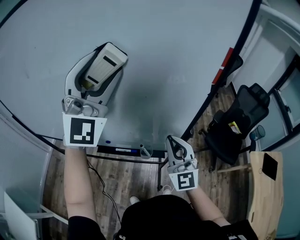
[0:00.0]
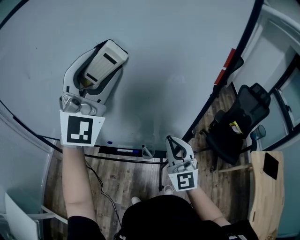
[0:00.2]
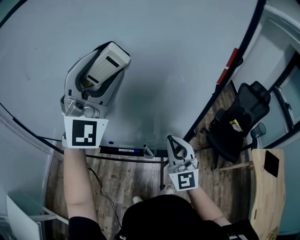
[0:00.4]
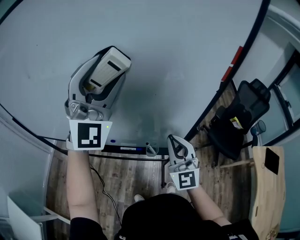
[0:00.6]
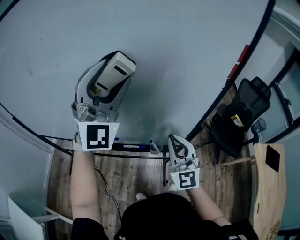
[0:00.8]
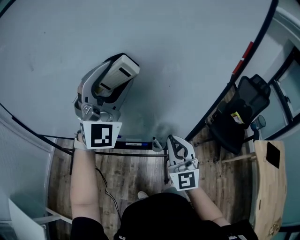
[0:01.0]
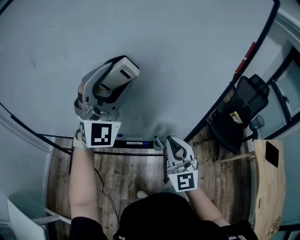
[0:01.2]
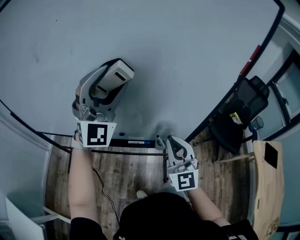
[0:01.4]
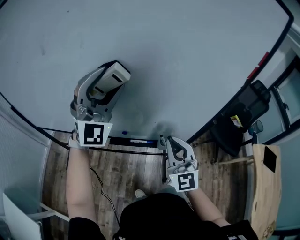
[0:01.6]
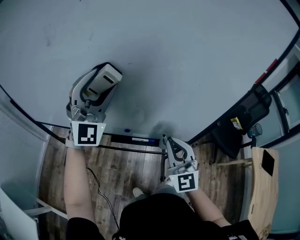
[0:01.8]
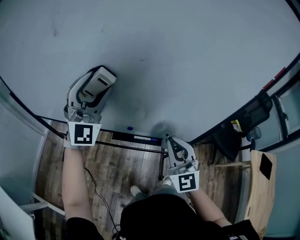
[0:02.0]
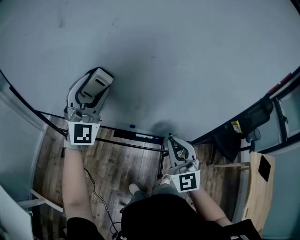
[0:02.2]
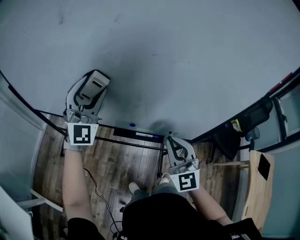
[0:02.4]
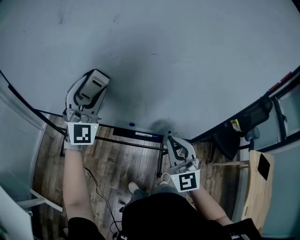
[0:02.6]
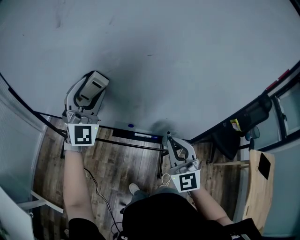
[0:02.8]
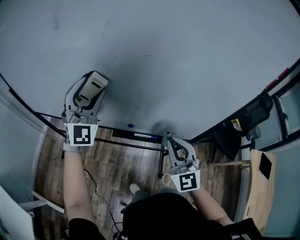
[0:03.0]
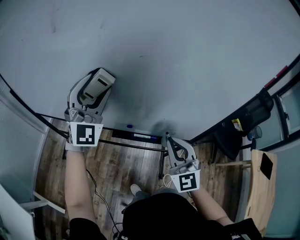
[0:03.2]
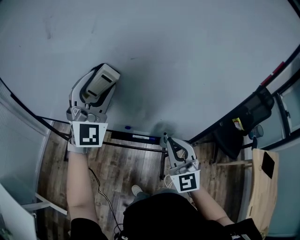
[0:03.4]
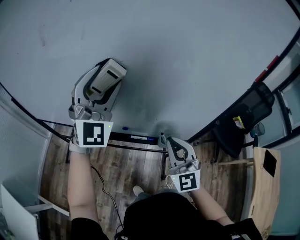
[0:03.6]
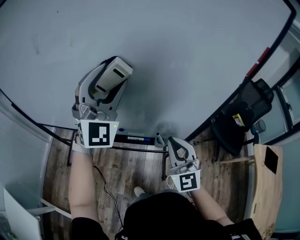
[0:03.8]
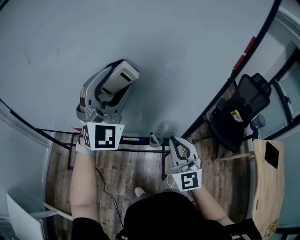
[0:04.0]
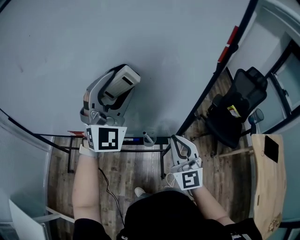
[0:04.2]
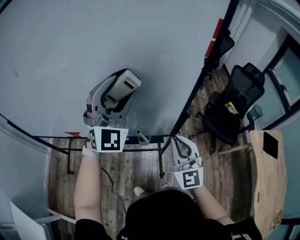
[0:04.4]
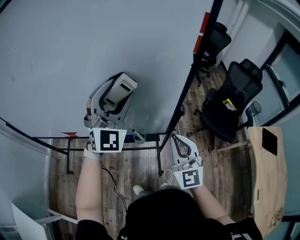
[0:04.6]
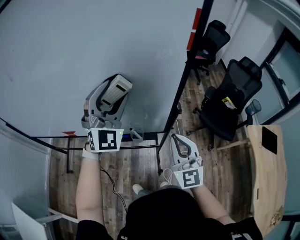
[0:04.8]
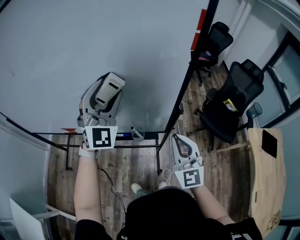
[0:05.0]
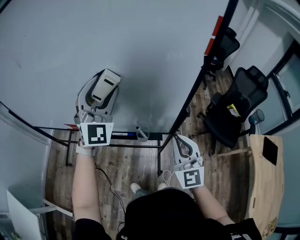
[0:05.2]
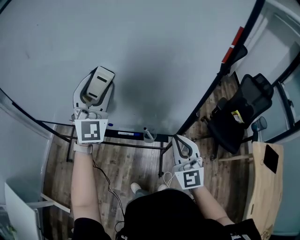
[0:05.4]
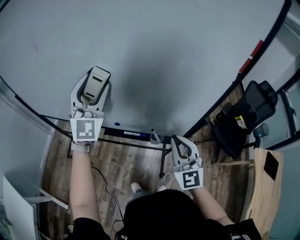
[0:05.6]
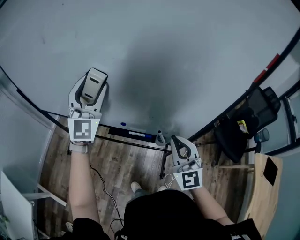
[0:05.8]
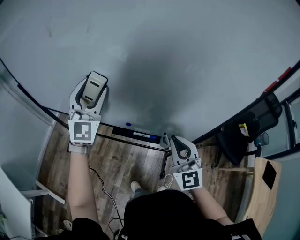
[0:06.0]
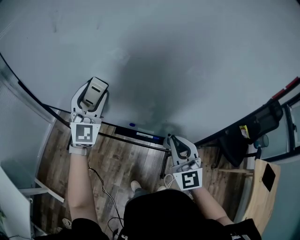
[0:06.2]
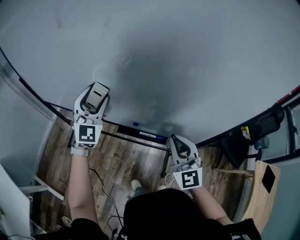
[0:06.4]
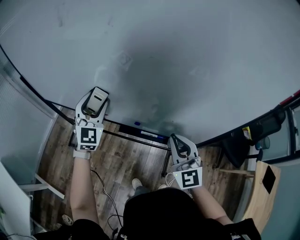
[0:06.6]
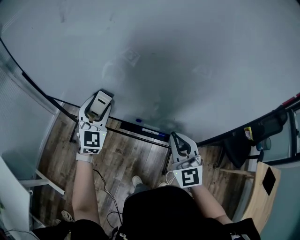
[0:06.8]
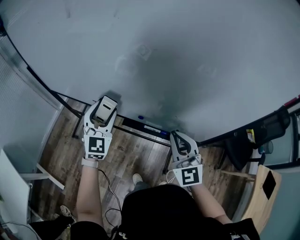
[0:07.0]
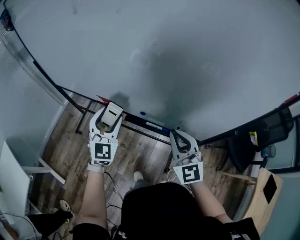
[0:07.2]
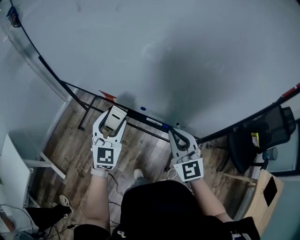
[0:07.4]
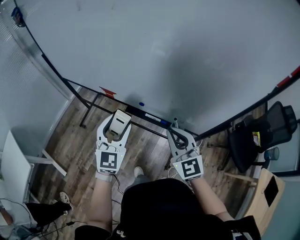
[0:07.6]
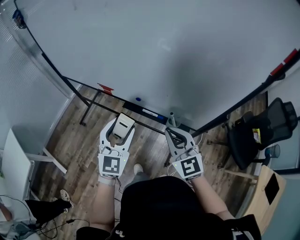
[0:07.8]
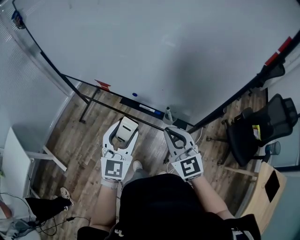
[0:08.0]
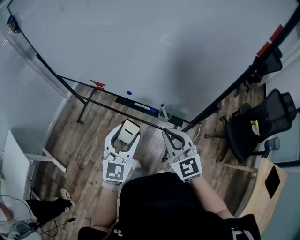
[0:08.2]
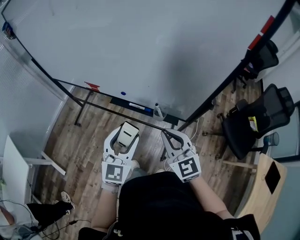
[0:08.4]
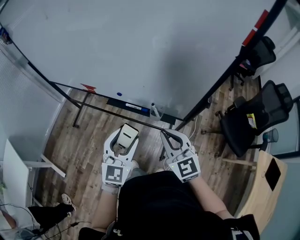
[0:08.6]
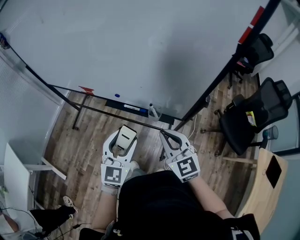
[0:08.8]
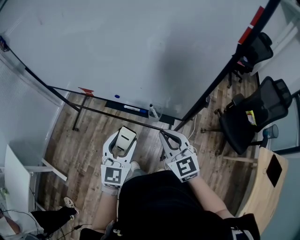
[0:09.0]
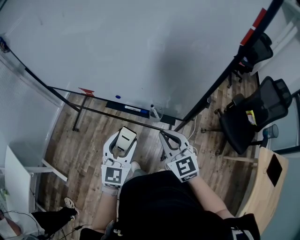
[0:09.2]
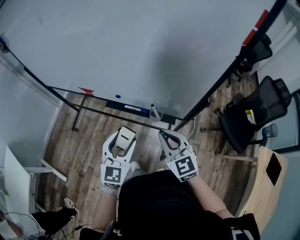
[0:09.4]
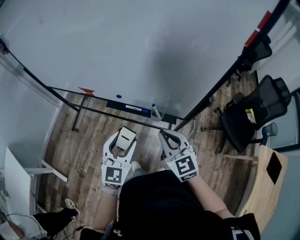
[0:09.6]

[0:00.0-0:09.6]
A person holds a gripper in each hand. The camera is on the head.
0.0 to 1.6 s: The right gripper shifts roughly 10 cm to the left, while the left gripper is displaced downward and to the left by roughly 20 cm.
1.6 to 3.2 s: The left gripper is displaced to the left and downward by some 10 cm.
3.2 to 4.8 s: The two grippers go roughly 25 cm to the right.
4.8 to 6.4 s: The right gripper heads to the left and forward, covering some 25 cm. The left gripper travels to the left by approximately 35 cm, and changes its angle by about 20 degrees.
6.4 to 8.0 s: The left gripper shifts about 30 cm backward and to the right, and turns by some 20 degrees. Meanwhile the right gripper travels backward by about 10 cm, and swivels some 20 degrees.
8.0 to 9.6 s: The right gripper shifts by roughly 5 cm, while the left gripper goes some 5 cm downward.

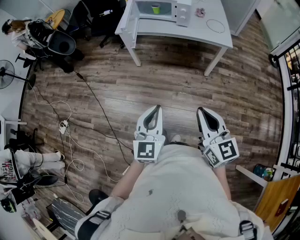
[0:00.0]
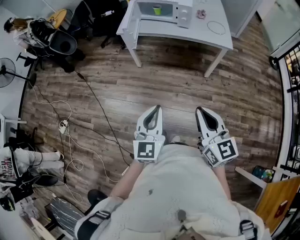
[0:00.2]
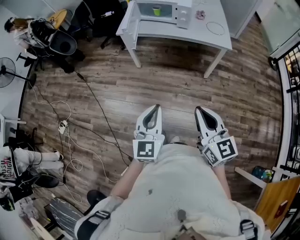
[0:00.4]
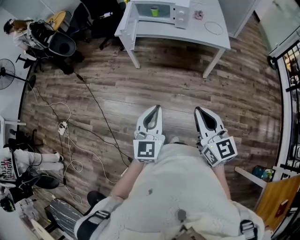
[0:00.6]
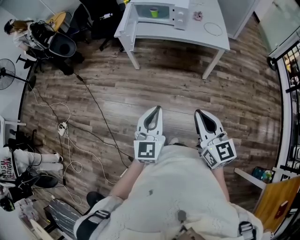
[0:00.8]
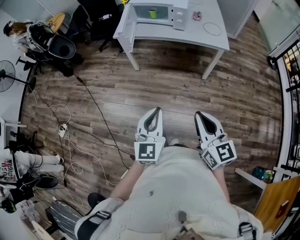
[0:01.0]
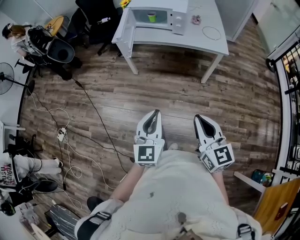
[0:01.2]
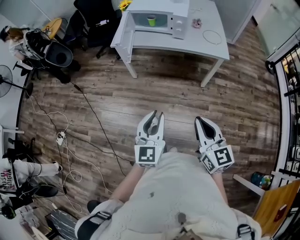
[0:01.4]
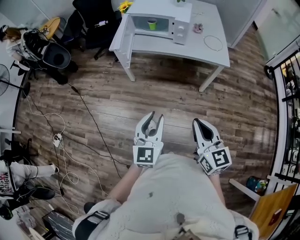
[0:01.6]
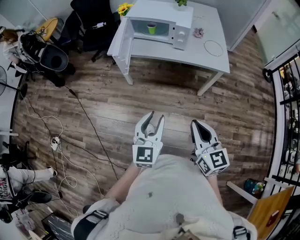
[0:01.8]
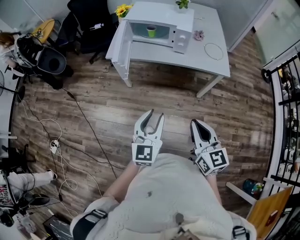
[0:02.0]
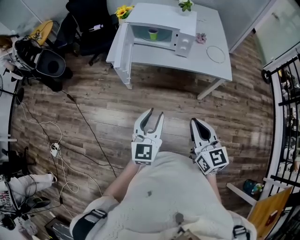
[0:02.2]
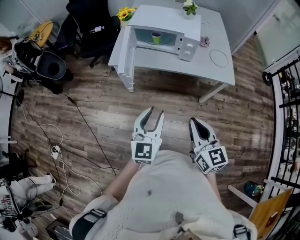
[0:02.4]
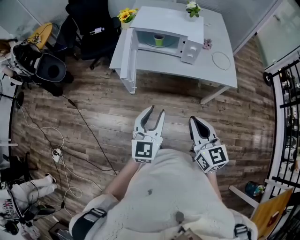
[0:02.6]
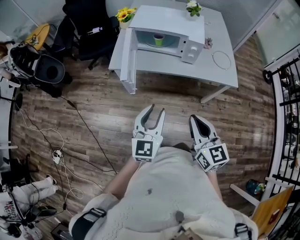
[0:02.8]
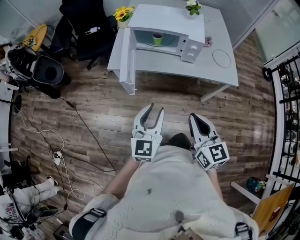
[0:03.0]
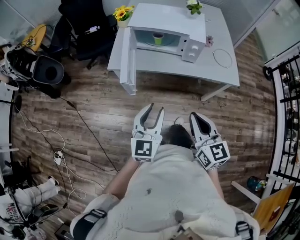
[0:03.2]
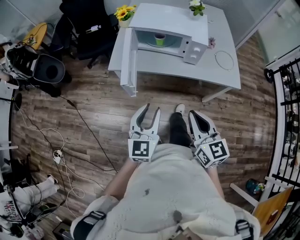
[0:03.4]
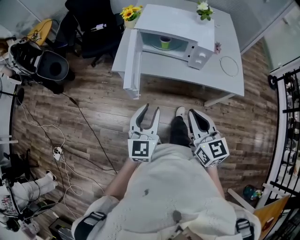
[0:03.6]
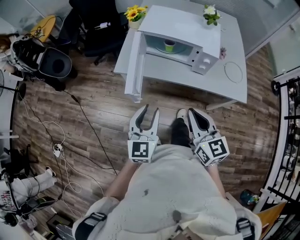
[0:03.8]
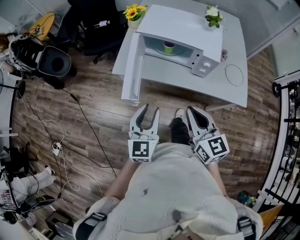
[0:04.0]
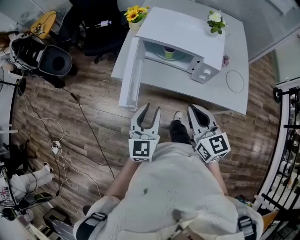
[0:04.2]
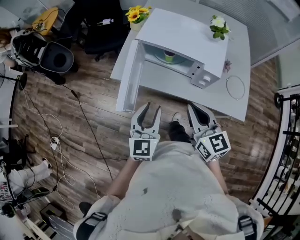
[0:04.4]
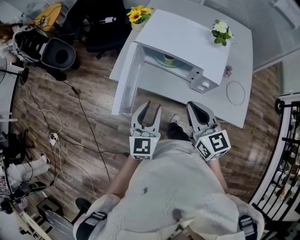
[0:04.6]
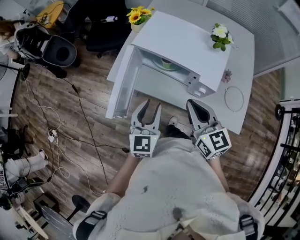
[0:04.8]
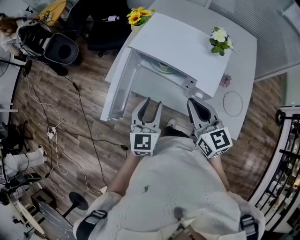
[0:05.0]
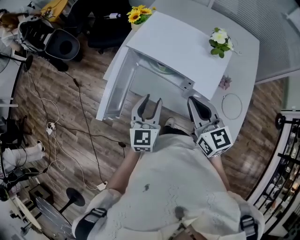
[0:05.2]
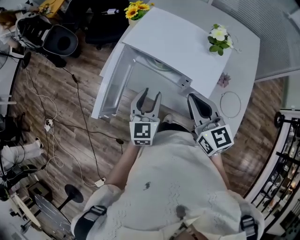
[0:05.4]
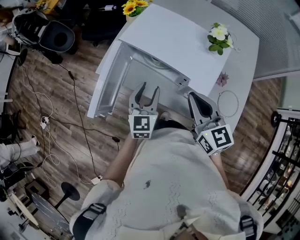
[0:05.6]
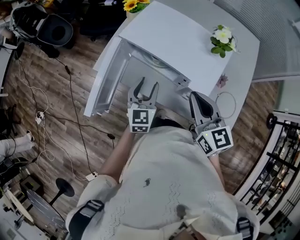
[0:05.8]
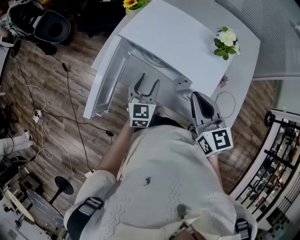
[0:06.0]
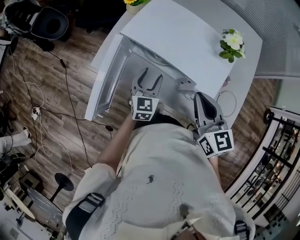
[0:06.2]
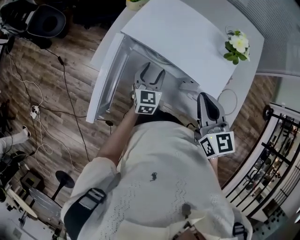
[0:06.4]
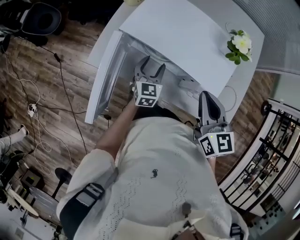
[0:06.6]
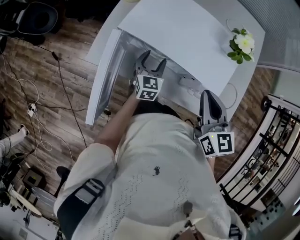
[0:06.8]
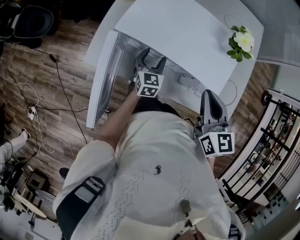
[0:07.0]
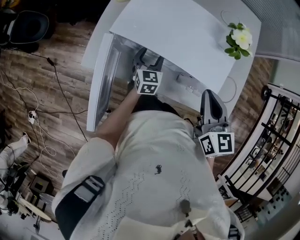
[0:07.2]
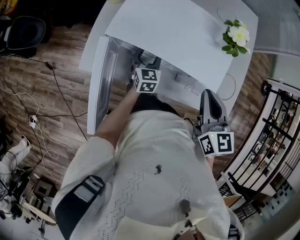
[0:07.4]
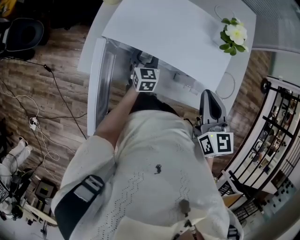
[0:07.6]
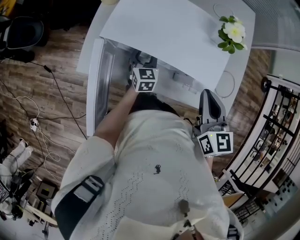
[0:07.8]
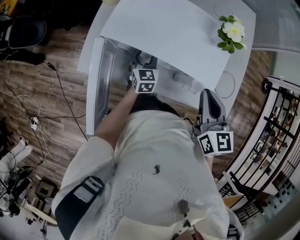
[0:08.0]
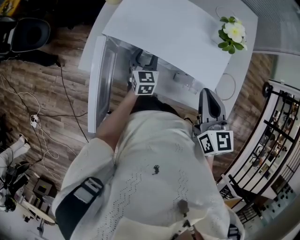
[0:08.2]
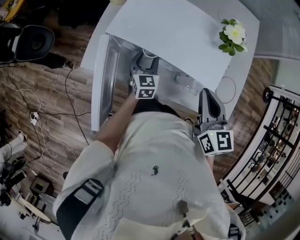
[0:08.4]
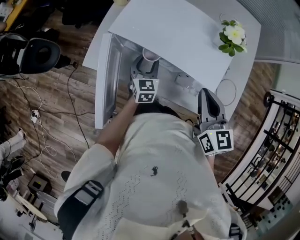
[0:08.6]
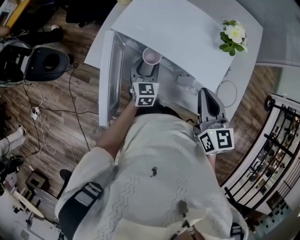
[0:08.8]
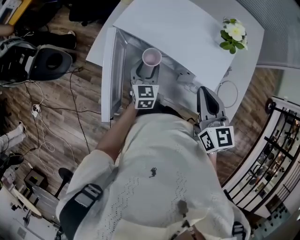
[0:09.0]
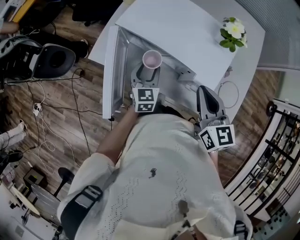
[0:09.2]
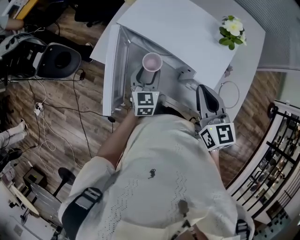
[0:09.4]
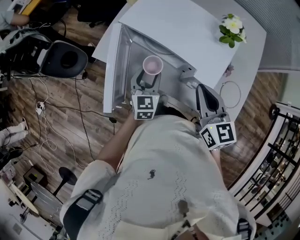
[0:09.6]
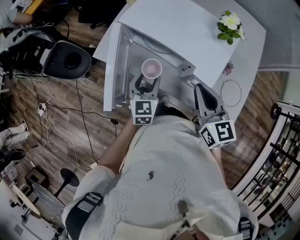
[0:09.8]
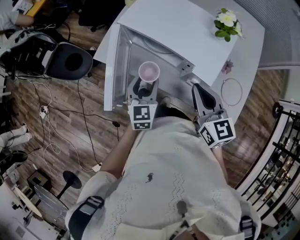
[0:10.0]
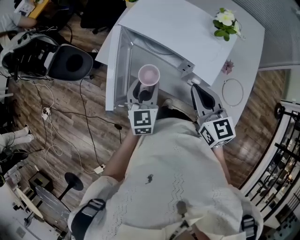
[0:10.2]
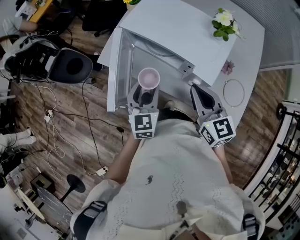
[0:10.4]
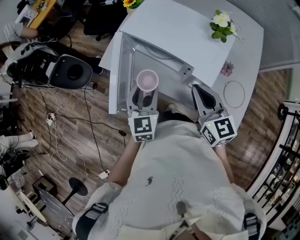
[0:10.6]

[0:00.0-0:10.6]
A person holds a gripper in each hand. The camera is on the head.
0.0 to 1.6 s: Both grippers move forward, roughly 15 cm.
1.6 to 3.0 s: The right gripper shifts some 30 cm forward and to the left. The left gripper goes roughly 30 cm forward.
3.0 to 4.6 s: The two grippers go approximately 30 cm forward.
4.6 to 6.0 s: The left gripper shifts about 25 cm forward, downward and to the right. Meanwhile the right gripper goes roughly 15 cm to the right and forward.
6.0 to 7.6 s: The left gripper goes about 20 cm forward and downward. The right gripper ends up roughly 5 cm from where it was, and swivels some 20 degrees.
7.6 to 9.0 s: The left gripper moves backward and upward, some 10 cm.
9.0 to 10.6 s: The right gripper travels backward by roughly 5 cm. The left gripper heads backward and upward, covering about 20 cm.

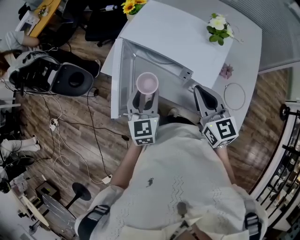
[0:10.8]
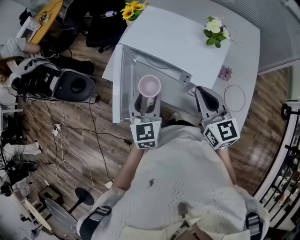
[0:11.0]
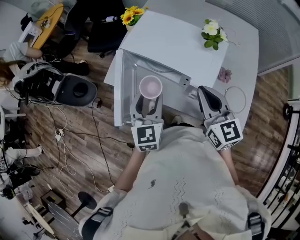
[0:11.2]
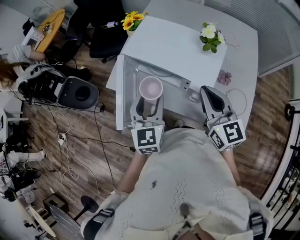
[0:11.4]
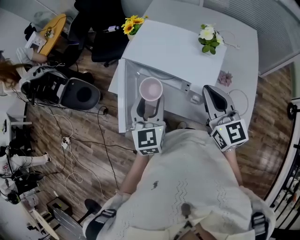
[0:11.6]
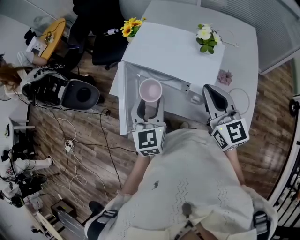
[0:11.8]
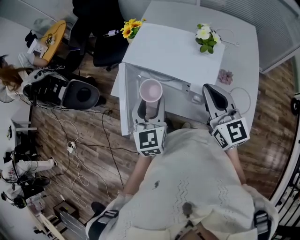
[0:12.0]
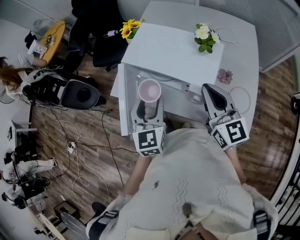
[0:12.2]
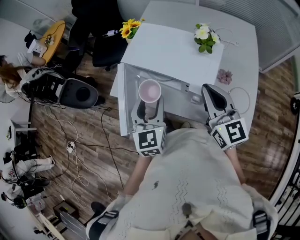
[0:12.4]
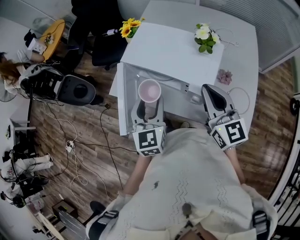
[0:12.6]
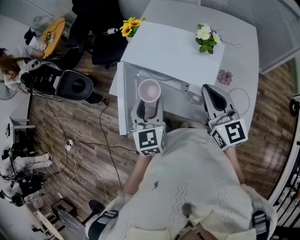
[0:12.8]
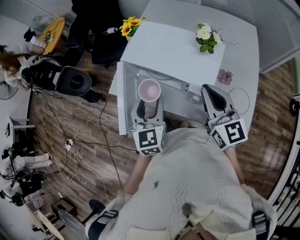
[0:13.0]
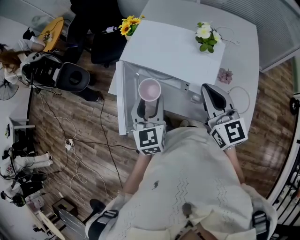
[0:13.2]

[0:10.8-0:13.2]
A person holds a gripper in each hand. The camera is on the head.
10.8 to 12.0 s: Both grippers move upward, approximately 10 cm.
12.0 to 13.2 s: The grippers move only a little.

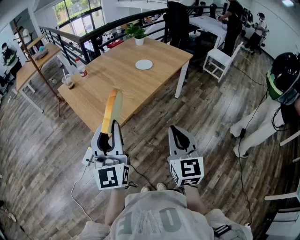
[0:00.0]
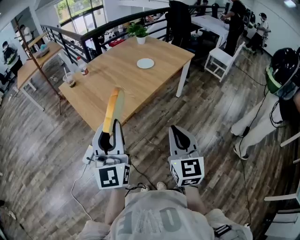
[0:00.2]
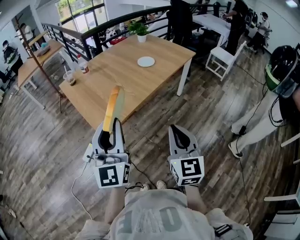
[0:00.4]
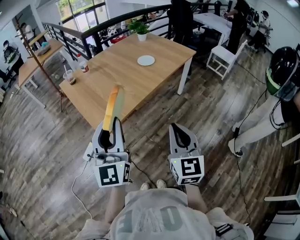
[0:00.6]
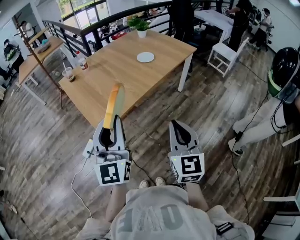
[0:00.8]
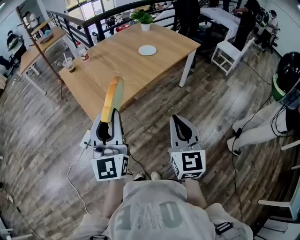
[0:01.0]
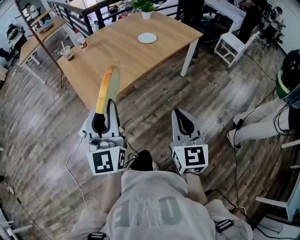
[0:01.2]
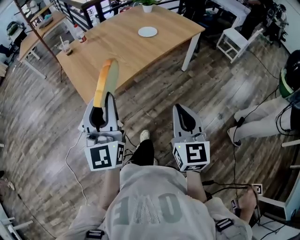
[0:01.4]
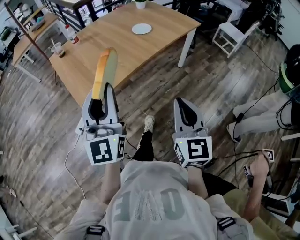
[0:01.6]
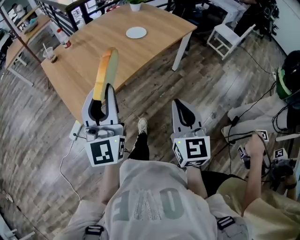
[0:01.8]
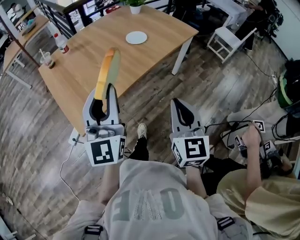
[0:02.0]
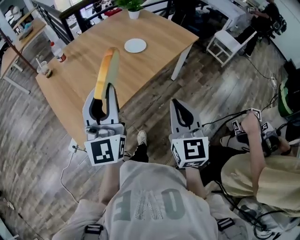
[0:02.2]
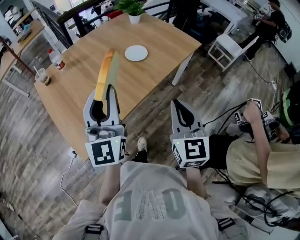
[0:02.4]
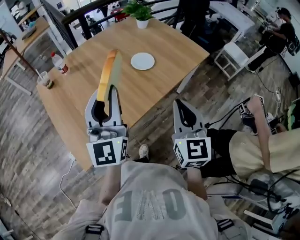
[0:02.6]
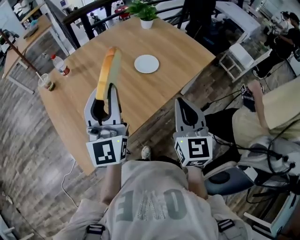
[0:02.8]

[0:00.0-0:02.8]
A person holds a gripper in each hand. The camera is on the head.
0.0 to 1.4 s: Both grippers move to the right, roughly 5 cm.
1.4 to 2.8 s: Both grippers travel together forward, approximately 35 cm.
